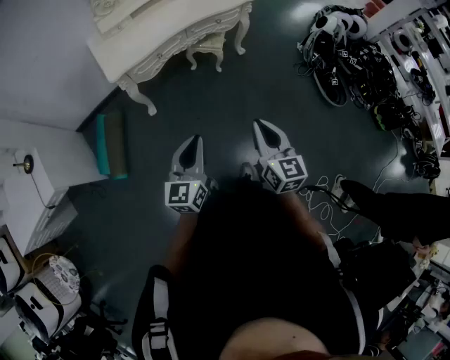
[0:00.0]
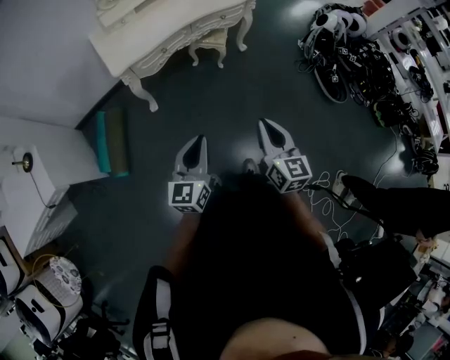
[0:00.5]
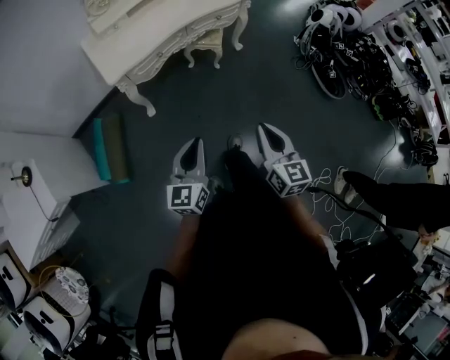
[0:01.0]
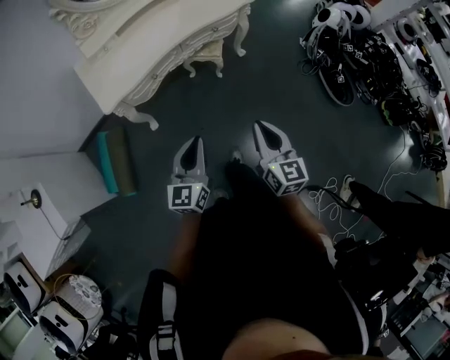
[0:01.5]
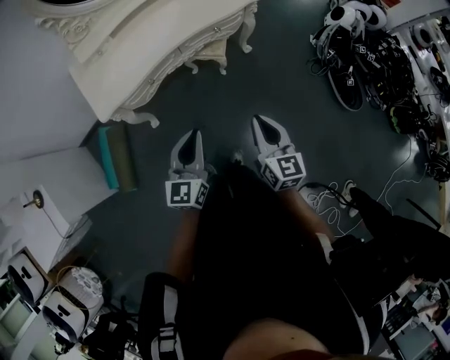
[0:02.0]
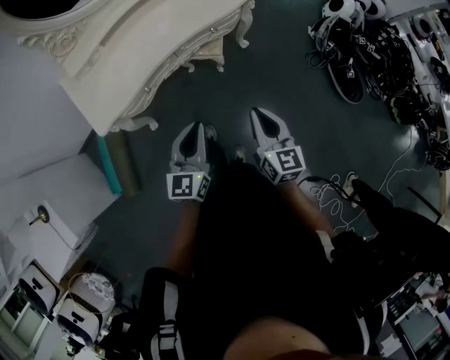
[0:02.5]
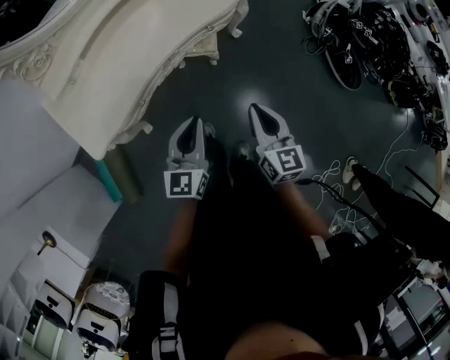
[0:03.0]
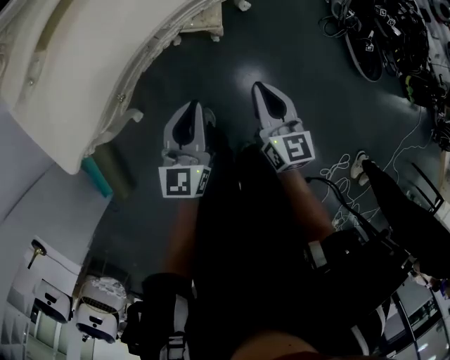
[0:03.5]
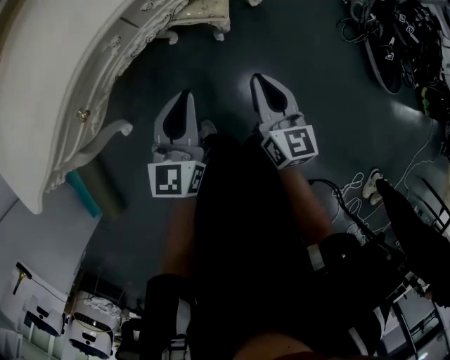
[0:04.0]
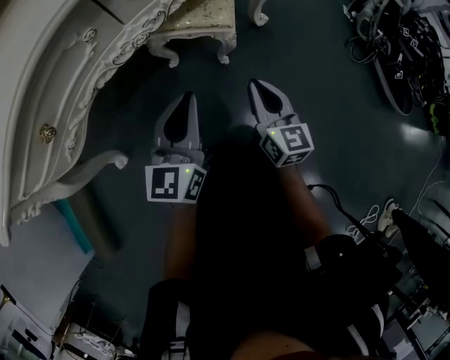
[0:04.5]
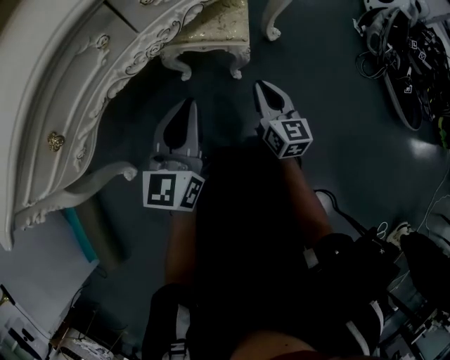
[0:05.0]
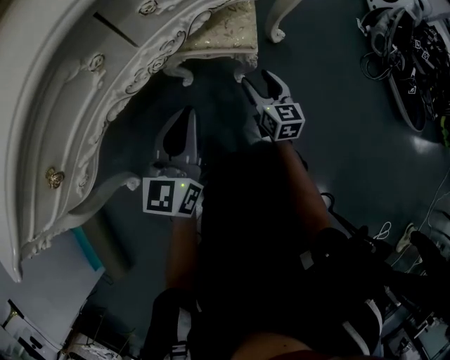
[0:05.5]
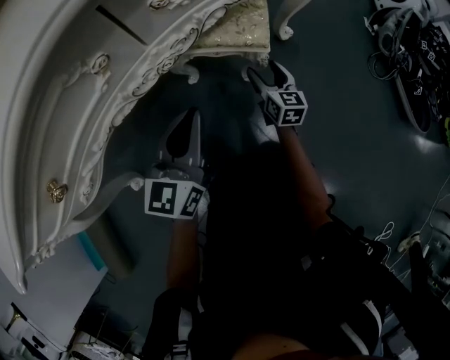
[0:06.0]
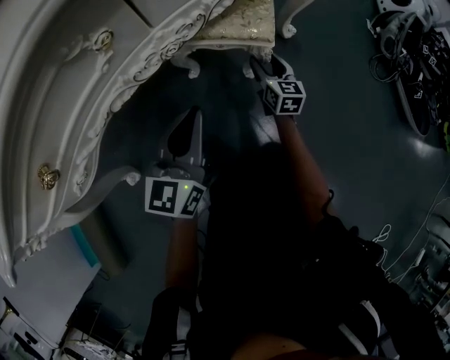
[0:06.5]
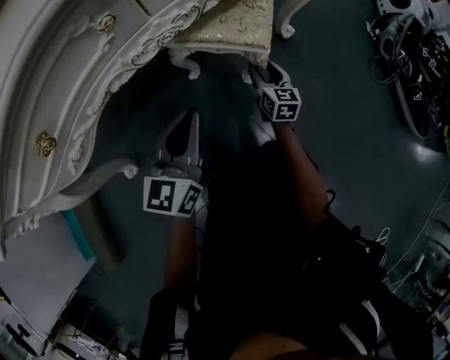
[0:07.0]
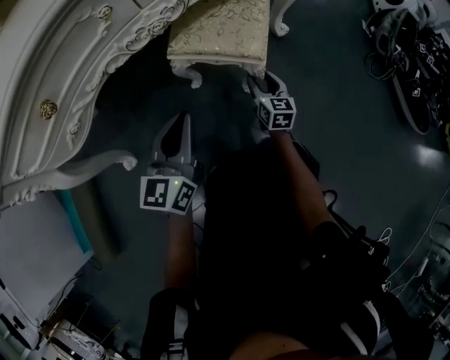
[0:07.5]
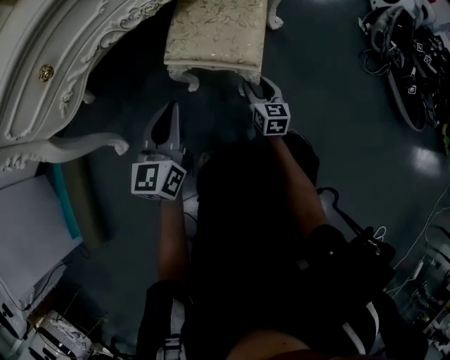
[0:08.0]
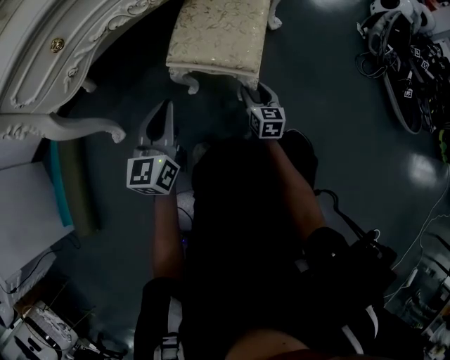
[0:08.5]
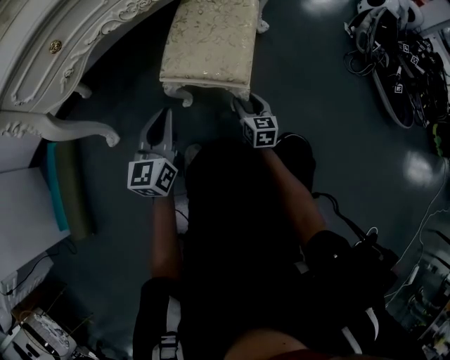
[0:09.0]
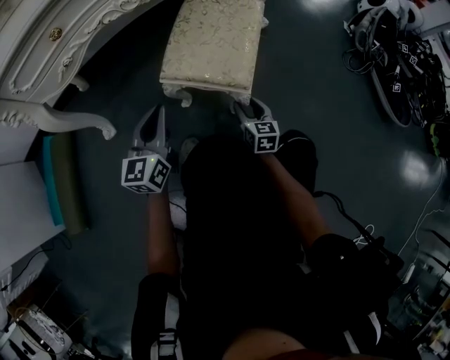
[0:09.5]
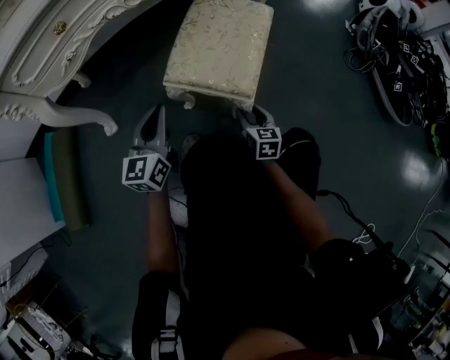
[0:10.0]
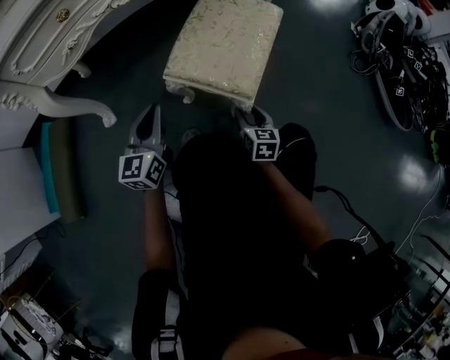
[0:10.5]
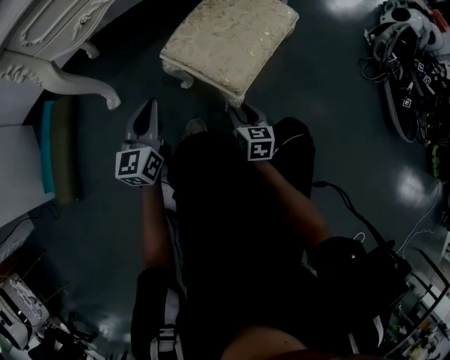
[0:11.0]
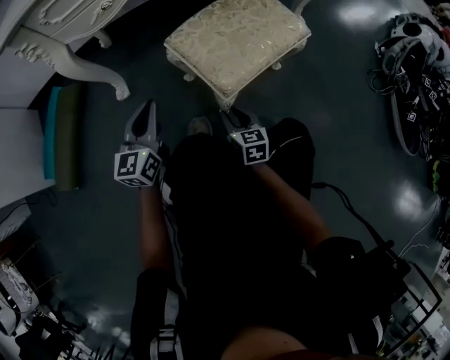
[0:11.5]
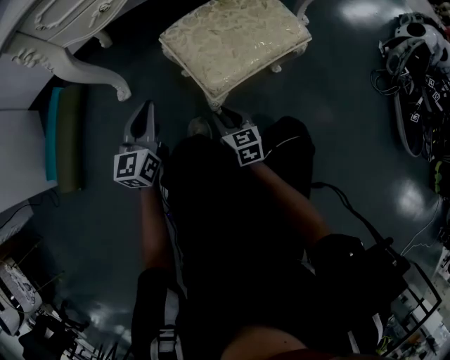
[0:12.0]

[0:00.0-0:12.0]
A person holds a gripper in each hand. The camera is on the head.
0:00.0 to 0:02.0: The two grippers go some 25 cm forward.
0:02.0 to 0:04.0: The two grippers go roughly 50 cm downward and forward.
0:04.0 to 0:06.0: The right gripper heads downward and forward, covering roughly 35 cm, and opens its fingers. Meanwhile the left gripper travels downward and forward by approximately 20 cm.
0:06.0 to 0:08.0: Both grippers travel together backward, approximately 15 cm. The right gripper closes.
0:08.0 to 0:10.0: The right gripper moves backward, some 15 cm. Meanwhile the left gripper heads backward, covering about 10 cm.
0:10.0 to 0:12.0: The right gripper shifts some 20 cm to the left, and rotates some 30 degrees. The left gripper moves to the left, roughly 10 cm.

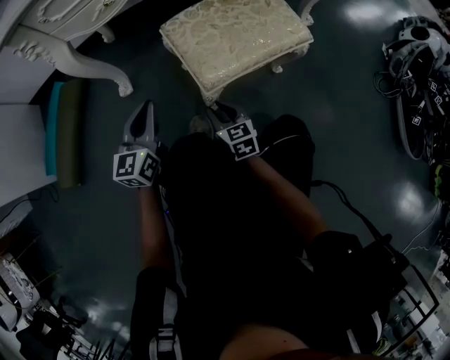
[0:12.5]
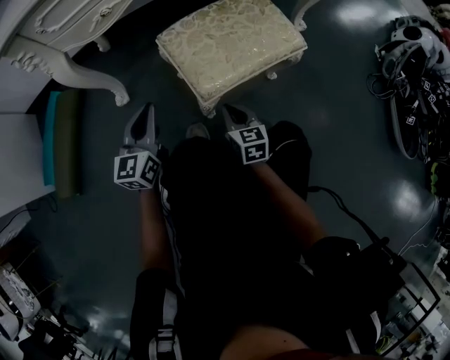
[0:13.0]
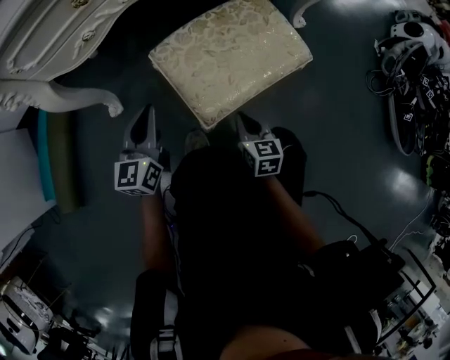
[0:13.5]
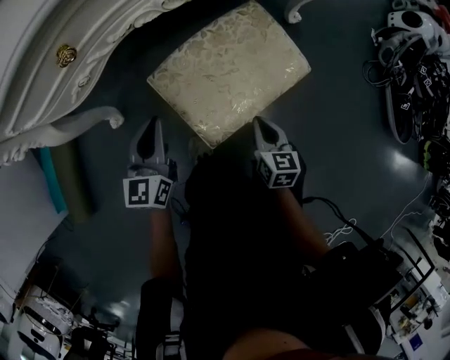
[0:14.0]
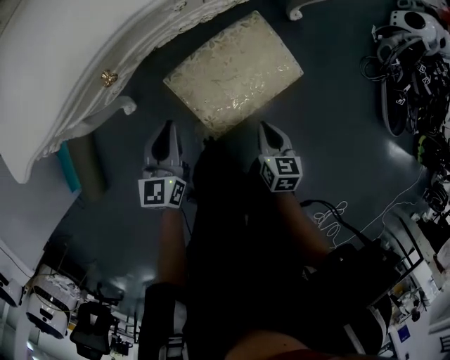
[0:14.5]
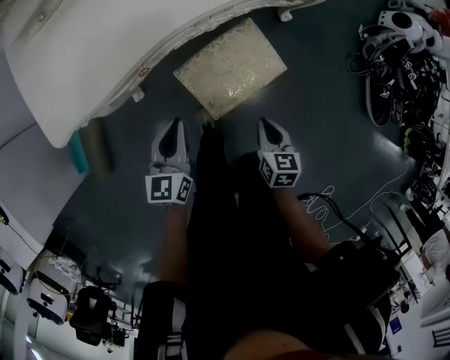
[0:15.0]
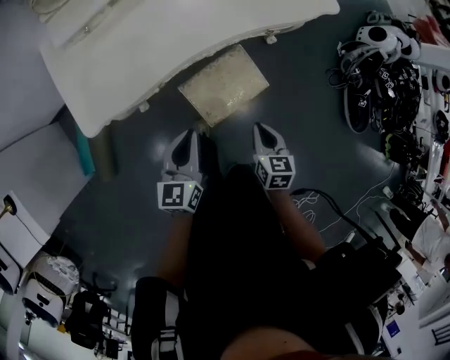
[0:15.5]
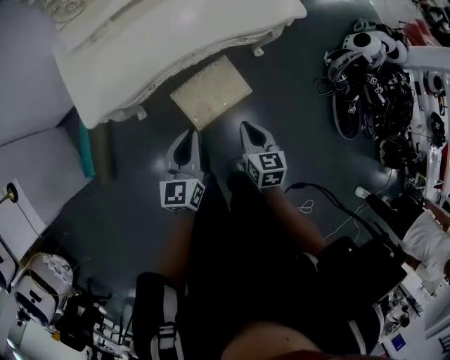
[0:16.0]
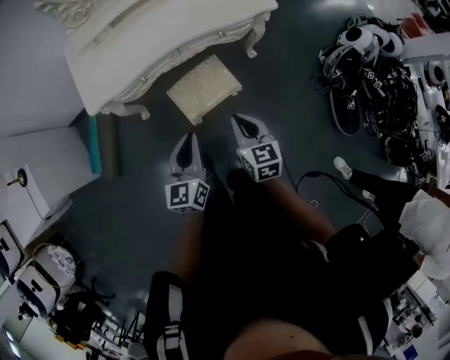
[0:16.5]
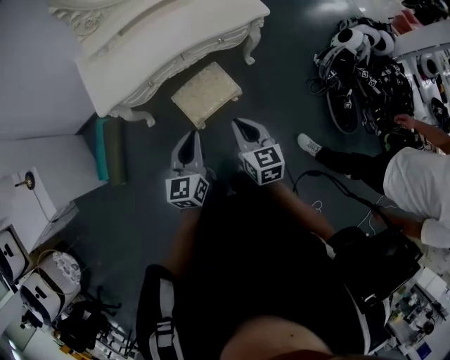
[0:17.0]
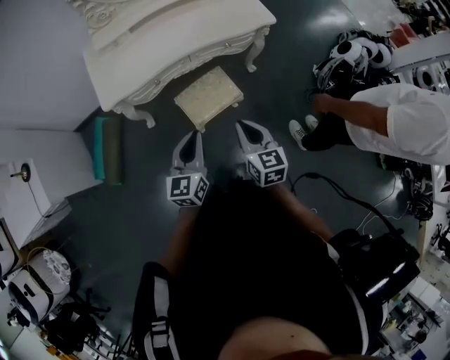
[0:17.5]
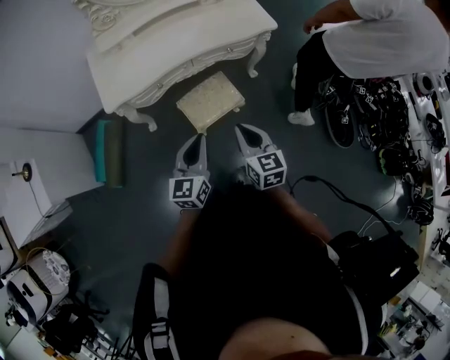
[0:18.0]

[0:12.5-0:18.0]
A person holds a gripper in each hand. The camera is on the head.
0:12.5 to 0:14.5: The left gripper shifts some 20 cm forward, upward and to the right, while the right gripper is displaced upward and to the right by roughly 25 cm, and turns by roughly 30 degrees.
0:14.5 to 0:16.0: Both grippers move upward, approximately 40 cm.
0:16.0 to 0:18.0: The right gripper travels upward and backward by some 20 cm. Meanwhile the left gripper travels backward and upward by approximately 20 cm.

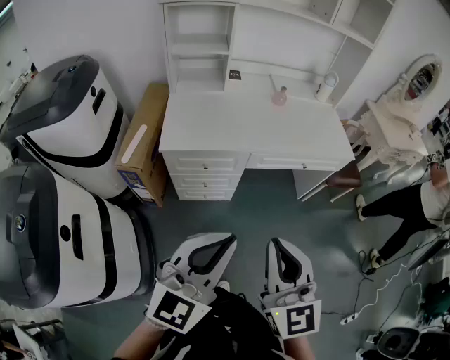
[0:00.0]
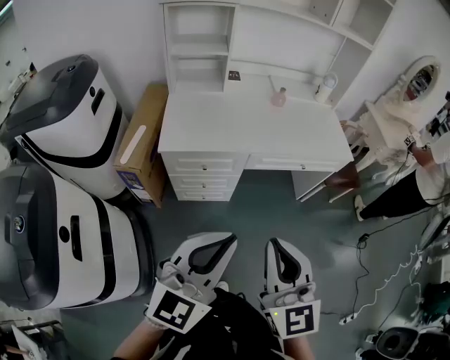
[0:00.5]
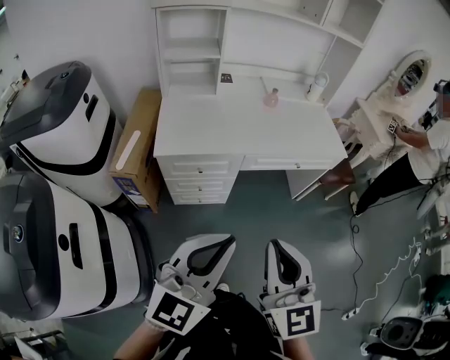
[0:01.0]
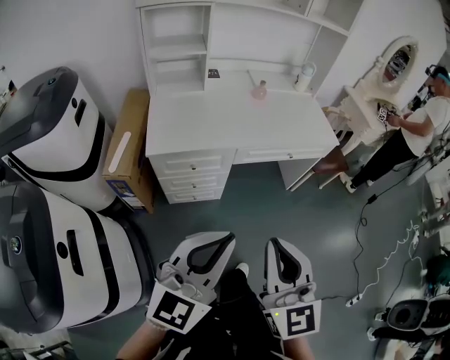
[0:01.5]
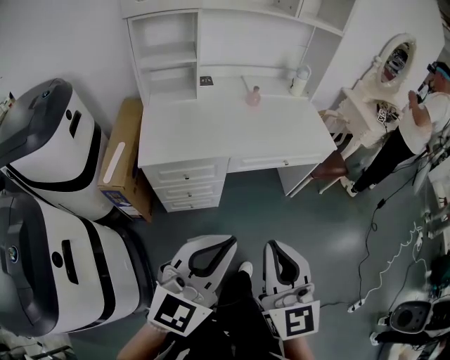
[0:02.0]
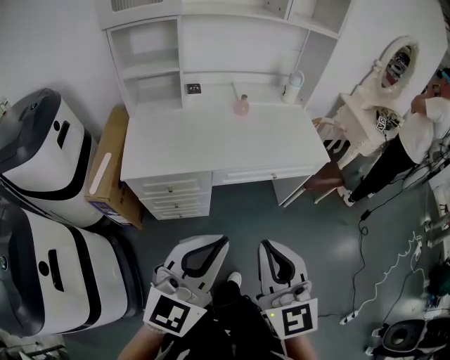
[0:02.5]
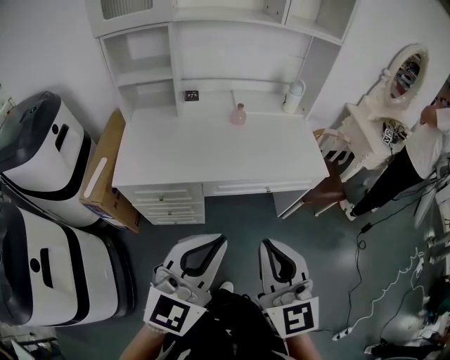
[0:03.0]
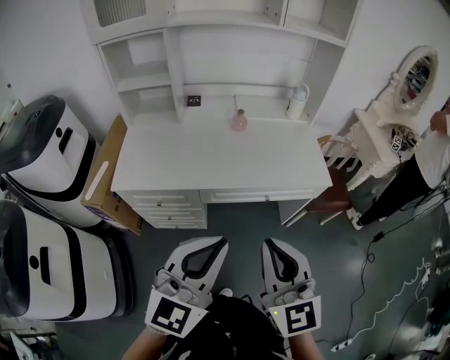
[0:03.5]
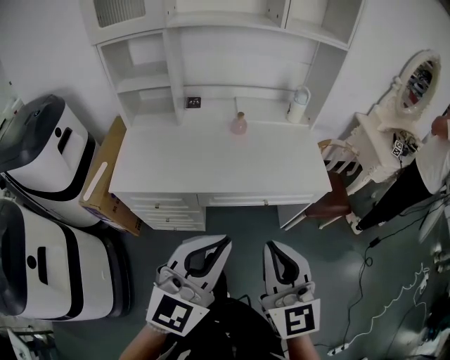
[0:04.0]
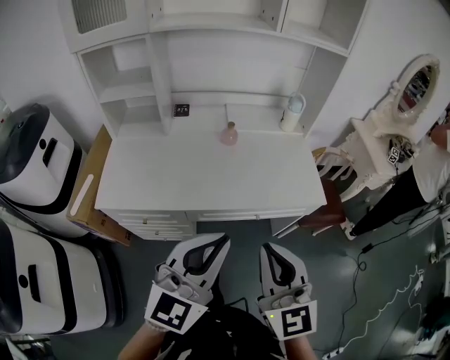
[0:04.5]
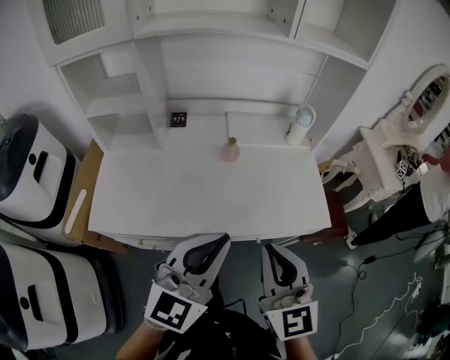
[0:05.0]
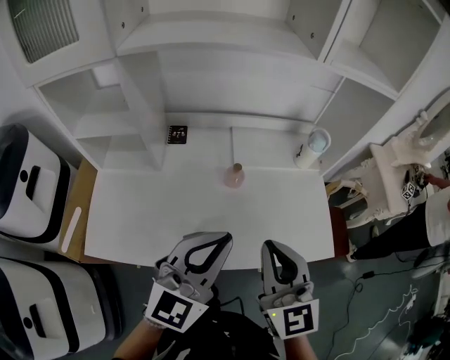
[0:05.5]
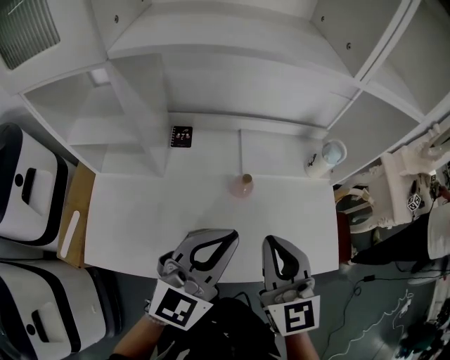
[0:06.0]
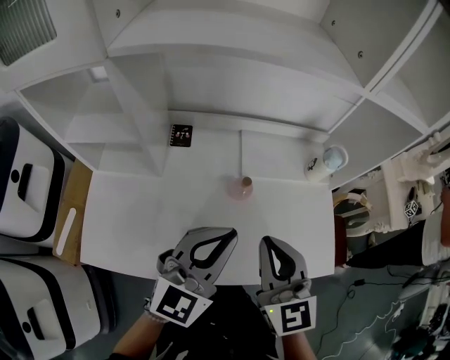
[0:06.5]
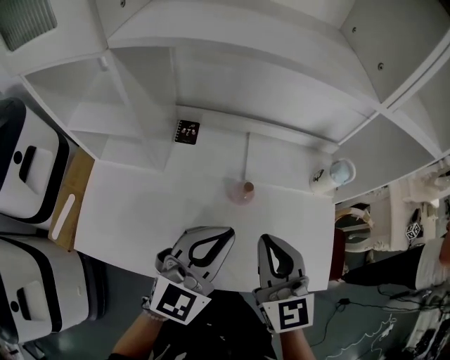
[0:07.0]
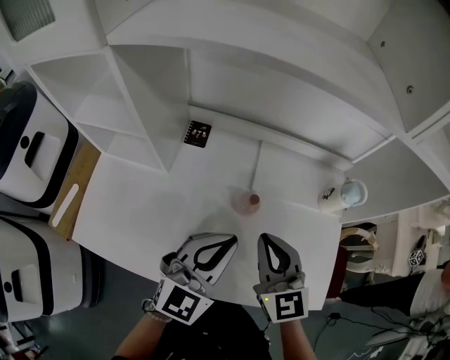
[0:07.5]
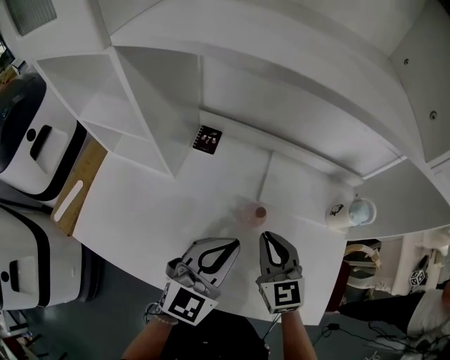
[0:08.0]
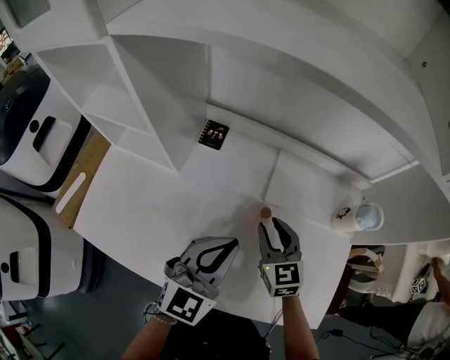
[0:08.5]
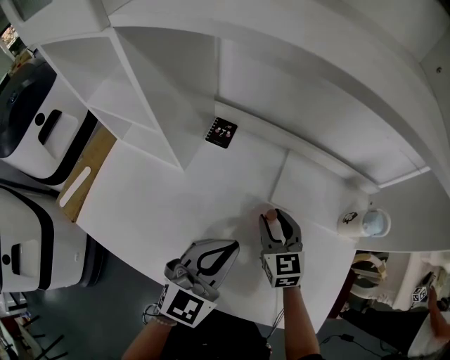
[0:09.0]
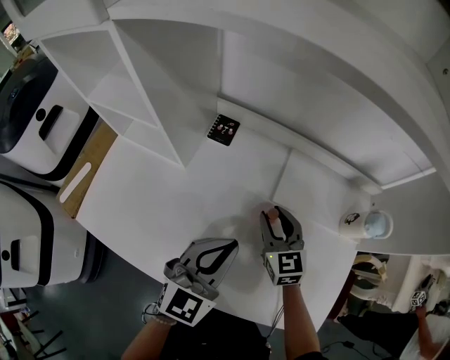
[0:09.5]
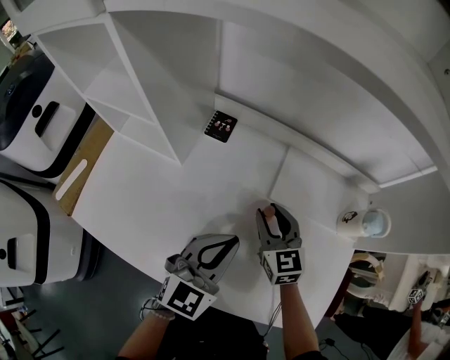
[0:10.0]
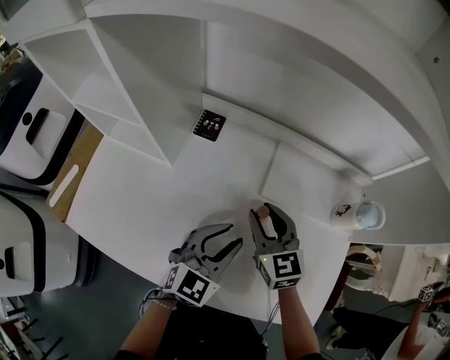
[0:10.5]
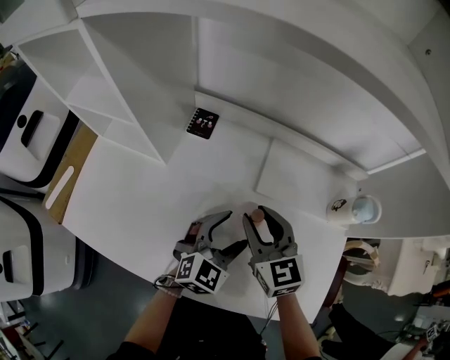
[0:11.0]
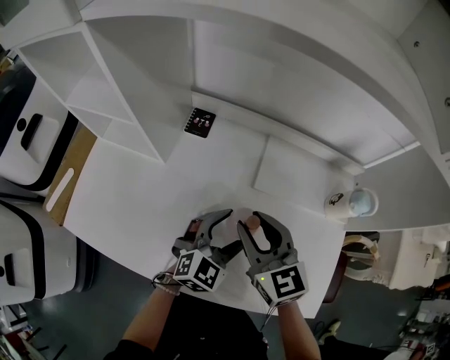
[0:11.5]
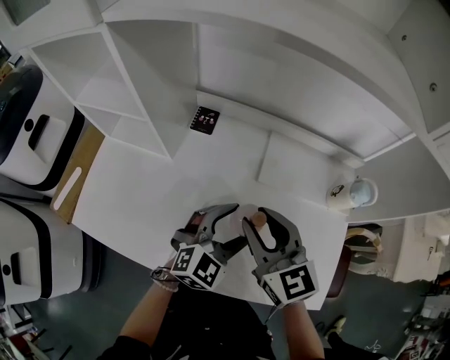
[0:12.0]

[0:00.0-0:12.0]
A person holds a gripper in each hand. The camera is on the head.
0:00.0 to 0:02.0: The grippers move only a little.
0:02.0 to 0:04.0: The grippers both shift forward and to the right by approximately 25 cm.
0:04.0 to 0:06.0: The two grippers travel together, forward, approximately 40 cm.
0:06.0 to 0:08.0: The left gripper heads forward and downward, covering approximately 15 cm; the right gripper heads downward and forward, covering some 20 cm, and swivels about 20 degrees.
0:08.0 to 0:10.0: The left gripper heads downward, covering approximately 5 cm. The right gripper goes roughly 10 cm forward and downward, and opens.
0:10.0 to 0:12.0: The right gripper is displaced upward and backward by roughly 15 cm. The left gripper changes its angle by roughly 20 degrees, and opens.
